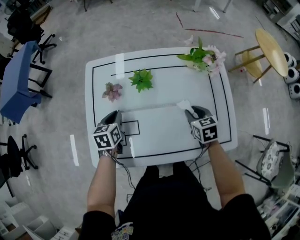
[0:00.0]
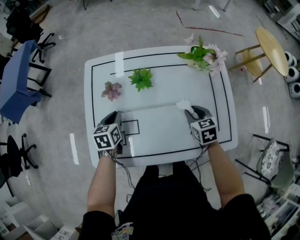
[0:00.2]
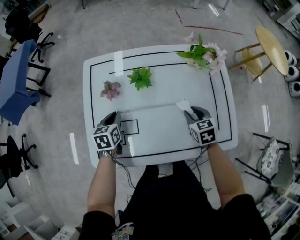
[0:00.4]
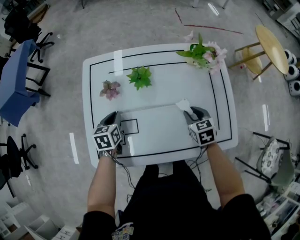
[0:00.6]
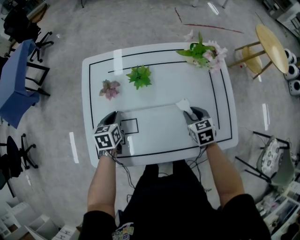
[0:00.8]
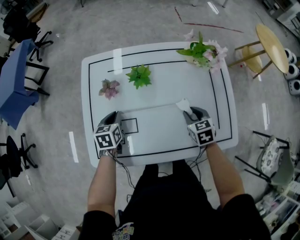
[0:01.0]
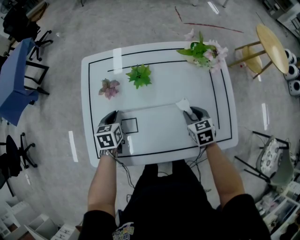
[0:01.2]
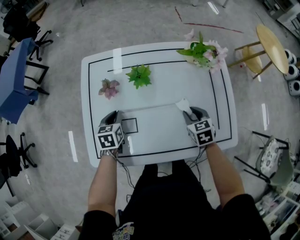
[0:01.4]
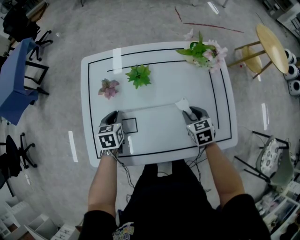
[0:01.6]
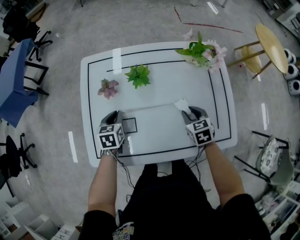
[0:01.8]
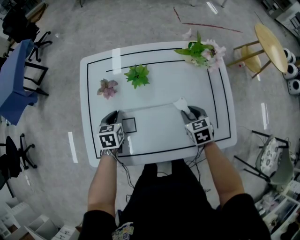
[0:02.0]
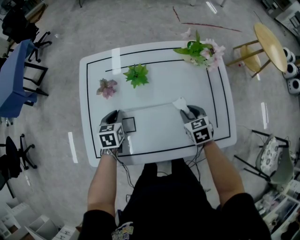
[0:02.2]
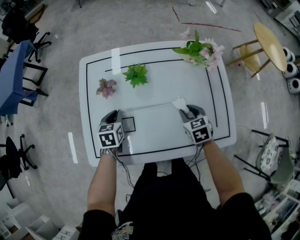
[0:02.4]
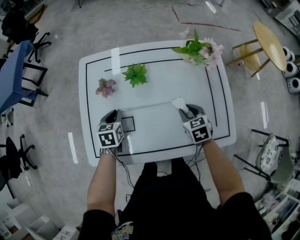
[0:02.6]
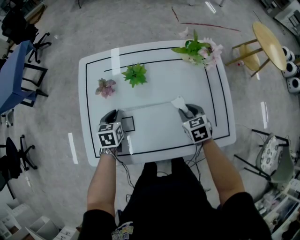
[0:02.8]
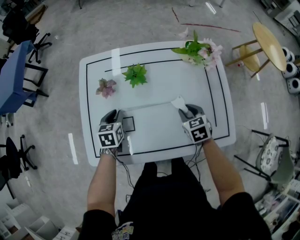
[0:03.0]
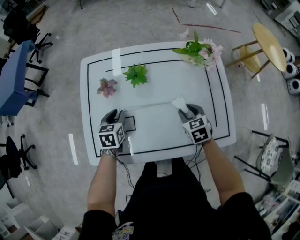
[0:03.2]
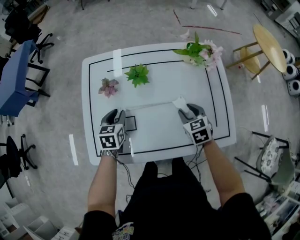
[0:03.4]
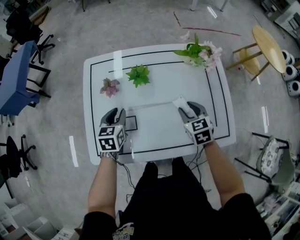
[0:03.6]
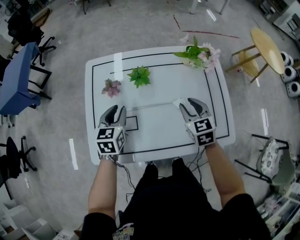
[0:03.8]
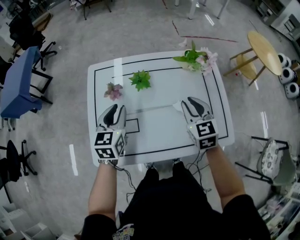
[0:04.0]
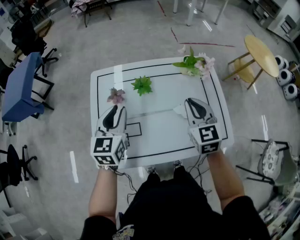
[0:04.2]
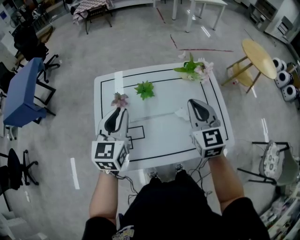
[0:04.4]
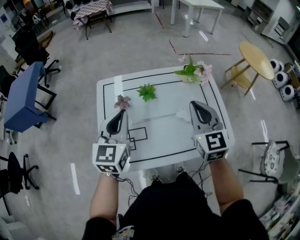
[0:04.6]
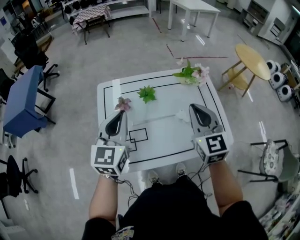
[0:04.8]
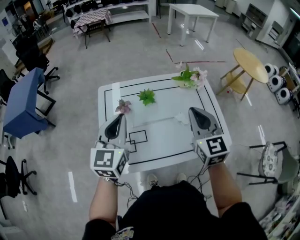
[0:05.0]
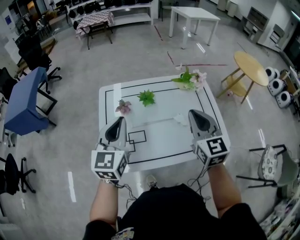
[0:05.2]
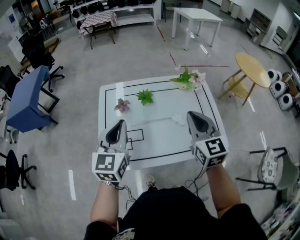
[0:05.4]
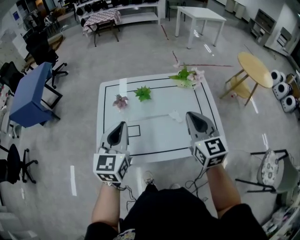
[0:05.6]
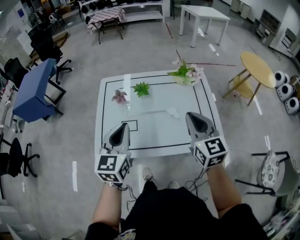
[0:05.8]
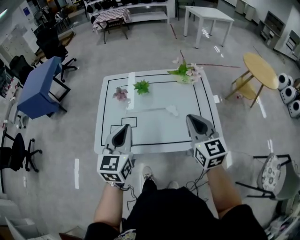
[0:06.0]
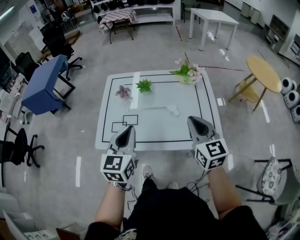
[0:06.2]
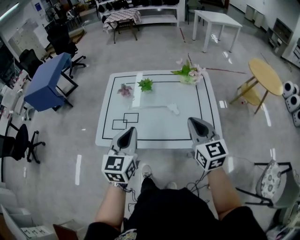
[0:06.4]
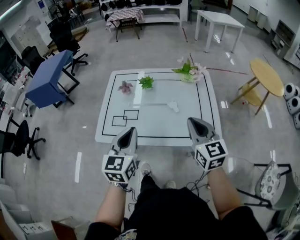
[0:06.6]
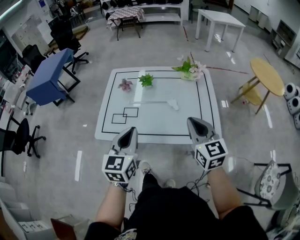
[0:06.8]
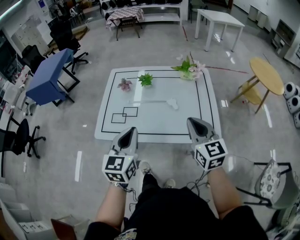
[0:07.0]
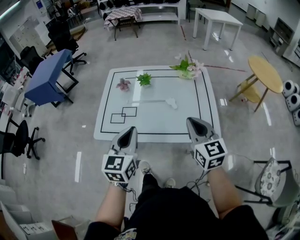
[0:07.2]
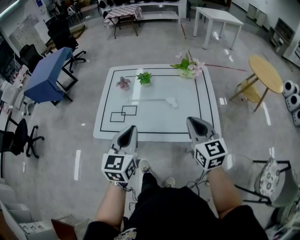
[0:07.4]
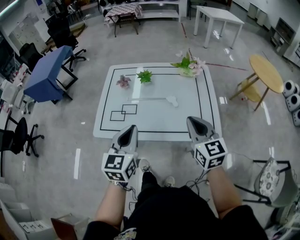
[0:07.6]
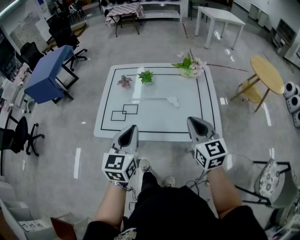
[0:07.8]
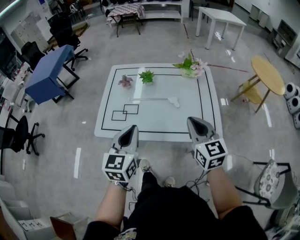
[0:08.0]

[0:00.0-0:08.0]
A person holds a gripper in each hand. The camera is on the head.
0:00.0 to 0:03.2: The grippers make only small movements.
0:03.2 to 0:04.8: The two grippers go about 30 cm upward. The left gripper points its fingers roughly 40 degrees further upward, and closes up; the right gripper points its fingers some 40 degrees further upward, and closes its fingers.
0:04.8 to 0:06.4: The grippers both shift backward and to the right by about 20 cm.
0:06.4 to 0:08.0: The grippers stay close to where they were, moving slightly.

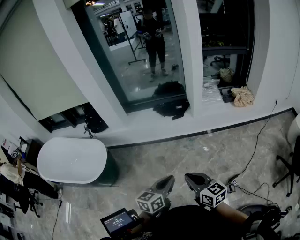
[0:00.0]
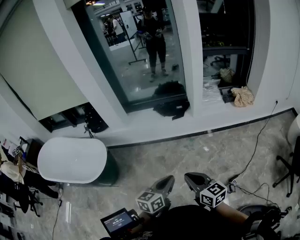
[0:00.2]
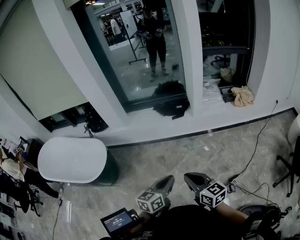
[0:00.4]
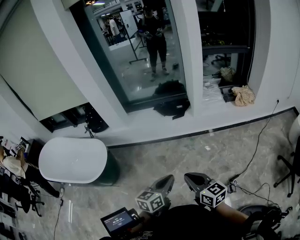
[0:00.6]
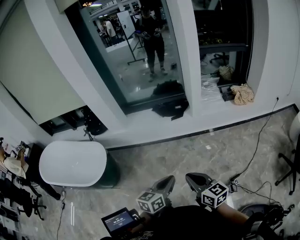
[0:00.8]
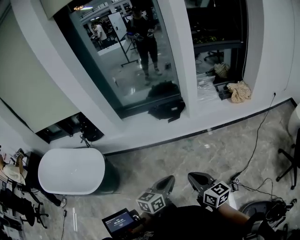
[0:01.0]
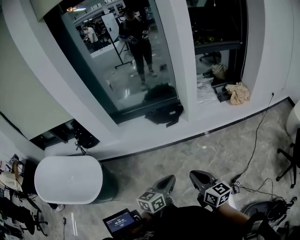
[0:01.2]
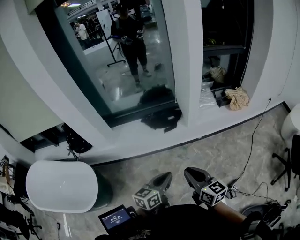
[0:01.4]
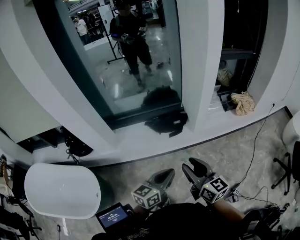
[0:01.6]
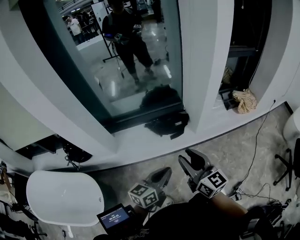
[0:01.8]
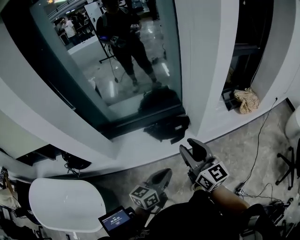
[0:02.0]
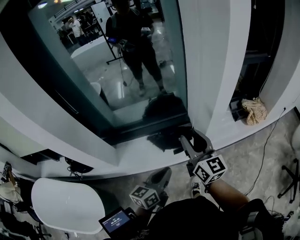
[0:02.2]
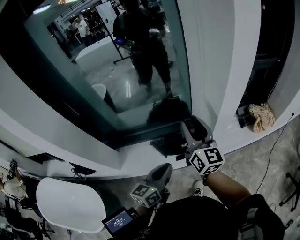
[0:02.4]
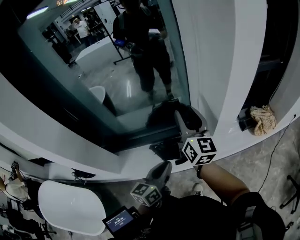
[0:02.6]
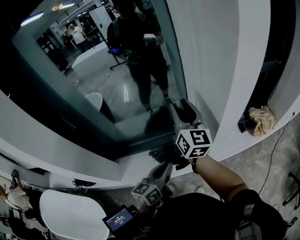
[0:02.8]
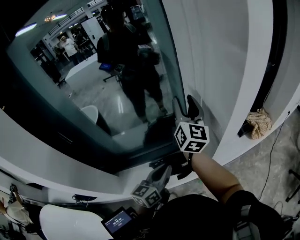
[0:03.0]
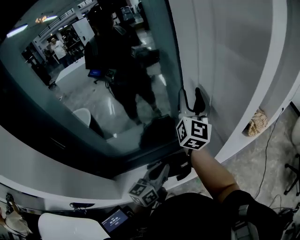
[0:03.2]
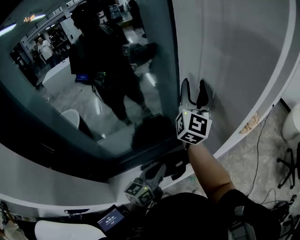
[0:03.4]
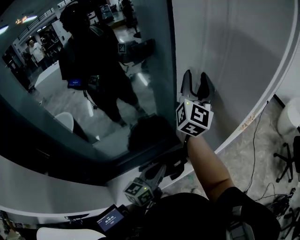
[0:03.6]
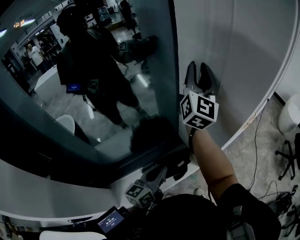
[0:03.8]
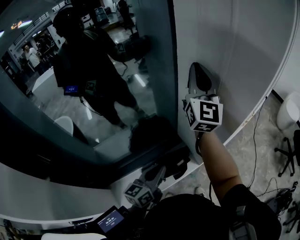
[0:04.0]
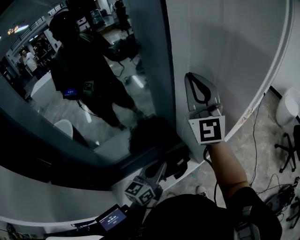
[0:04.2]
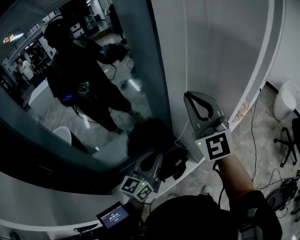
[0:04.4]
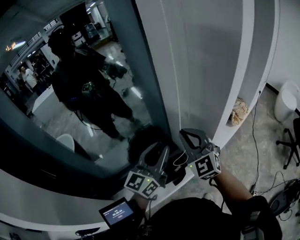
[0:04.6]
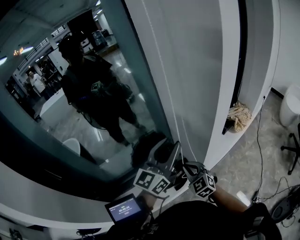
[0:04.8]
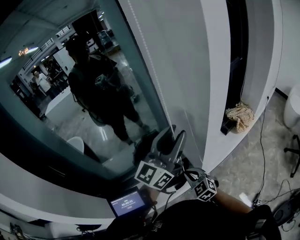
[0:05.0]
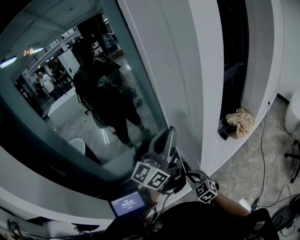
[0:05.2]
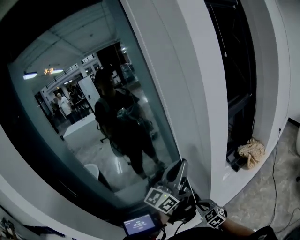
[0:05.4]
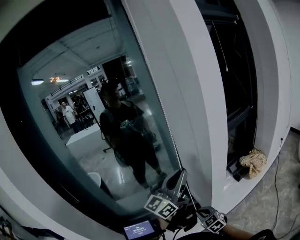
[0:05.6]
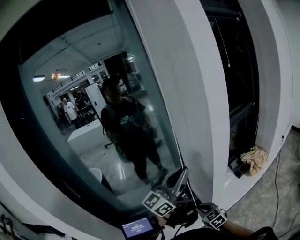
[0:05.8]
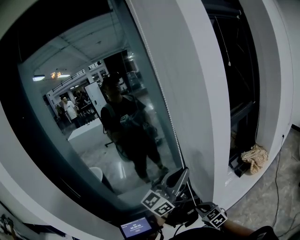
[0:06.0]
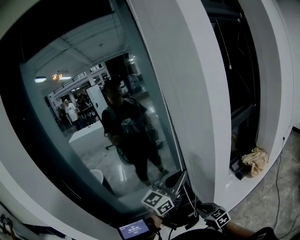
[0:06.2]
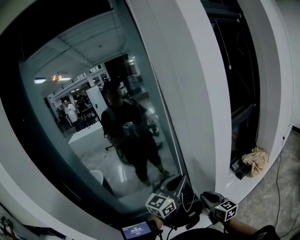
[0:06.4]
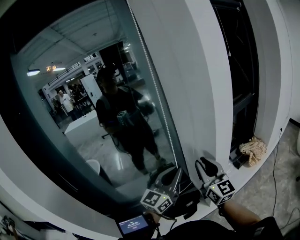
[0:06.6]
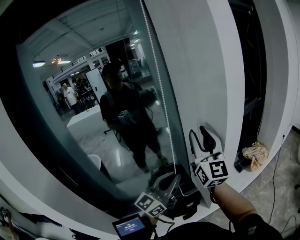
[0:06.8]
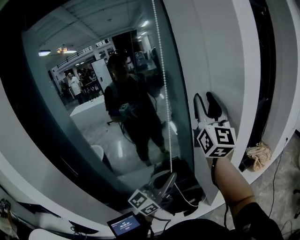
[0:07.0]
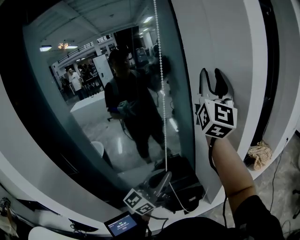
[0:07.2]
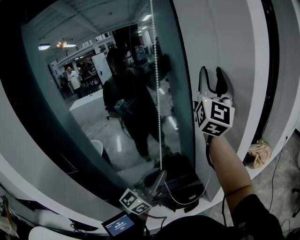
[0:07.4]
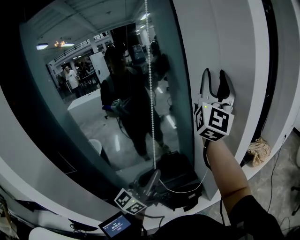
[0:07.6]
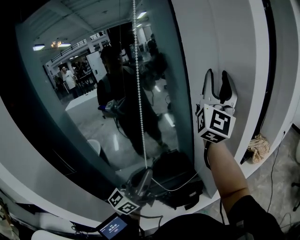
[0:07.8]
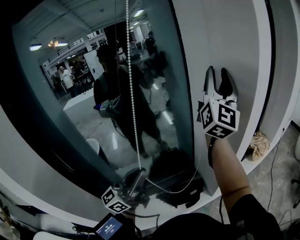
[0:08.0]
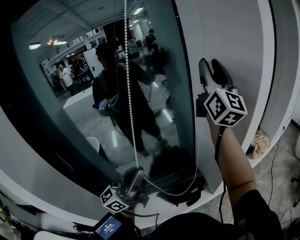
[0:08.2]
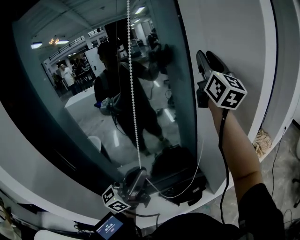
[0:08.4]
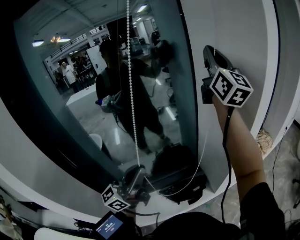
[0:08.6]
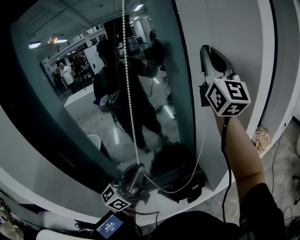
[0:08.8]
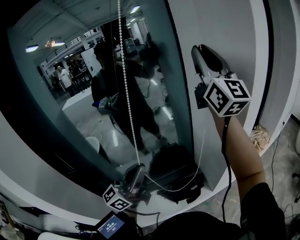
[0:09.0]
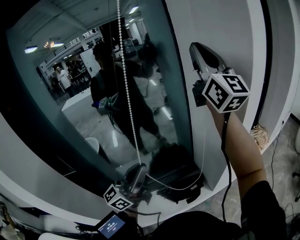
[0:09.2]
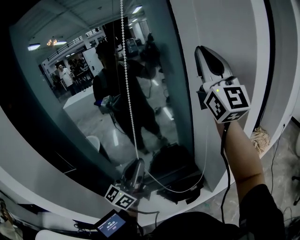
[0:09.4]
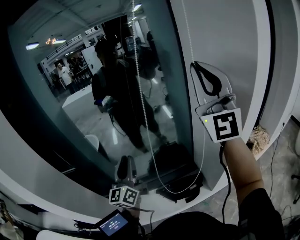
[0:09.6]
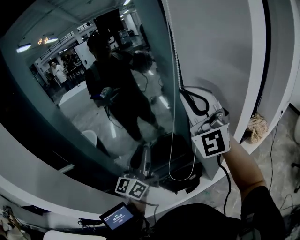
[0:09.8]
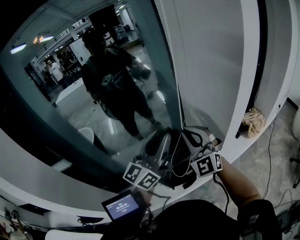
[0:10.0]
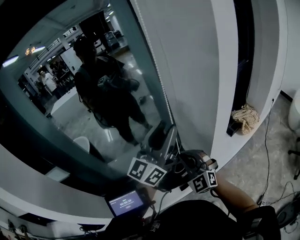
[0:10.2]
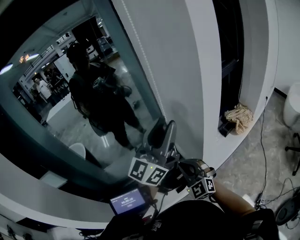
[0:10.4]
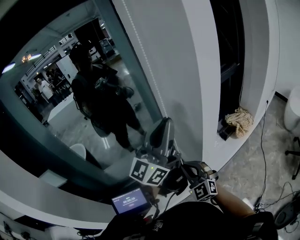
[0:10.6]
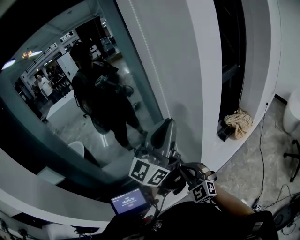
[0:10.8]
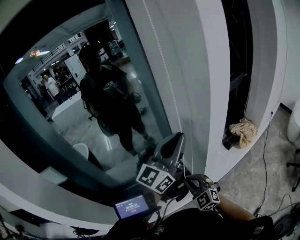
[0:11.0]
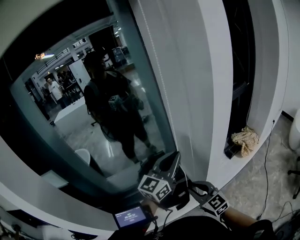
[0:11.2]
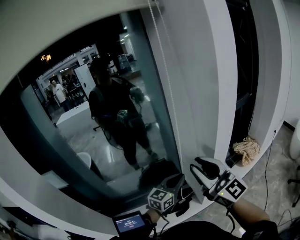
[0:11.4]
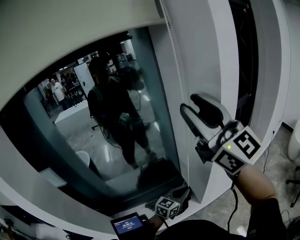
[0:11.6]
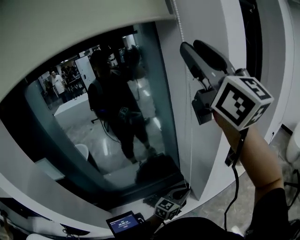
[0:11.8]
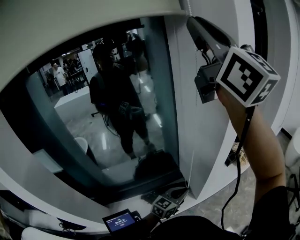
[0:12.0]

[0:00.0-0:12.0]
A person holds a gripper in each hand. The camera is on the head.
0:00.0 to 0:01.6: Both grippers move forward, some 30 cm. The right gripper rotates about 20 degrees, and opens.
0:01.6 to 0:03.0: The two grippers go about 50 cm forward. The right gripper swivels roughly 40 degrees.
0:03.0 to 0:04.4: The left gripper travels upward, to the left and forward by approximately 10 cm, and turns by some 20 degrees, while the right gripper moves upward and backward, approximately 10 cm, twists roughly 50 degrees counterclockwise, seen from behind, and closes.
0:04.4 to 0:06.0: The right gripper heads downward, covering some 35 cm, and angles its fingers downward, by about 40 degrees; the left gripper travels upward and to the right by some 25 cm, rotates roughly 30 degrees, and opens and closes again.
0:06.0 to 0:07.6: The left gripper changes place by some 20 cm, while the right gripper goes approximately 50 cm upward, tilts its fingers approximately 70 degrees upward, and opens up.
0:07.6 to 0:09.0: The right gripper shifts by roughly 5 cm, swivels about 30 degrees, and closes up. Meanwhile the left gripper ends up some 5 cm from where it was.
0:09.0 to 0:10.4: The right gripper travels downward by roughly 50 cm, and tips its fingers downward by some 50 degrees. Meanwhile the left gripper moves roughly 25 cm, and opens.
0:10.4 to 0:12.0: The left gripper goes roughly 35 cm downward, points its fingers approximately 40 degrees further downward, and closes up. The right gripper shifts about 60 cm upward, angles its fingers upward, by roughly 50 degrees, and opens, then closes once more.

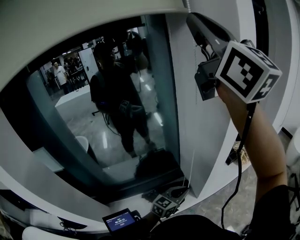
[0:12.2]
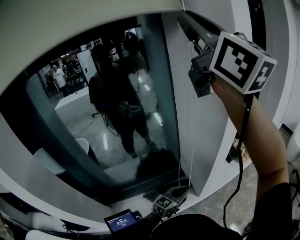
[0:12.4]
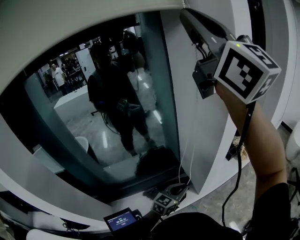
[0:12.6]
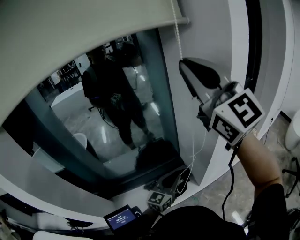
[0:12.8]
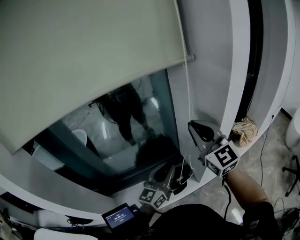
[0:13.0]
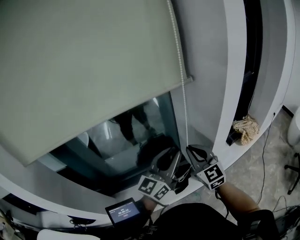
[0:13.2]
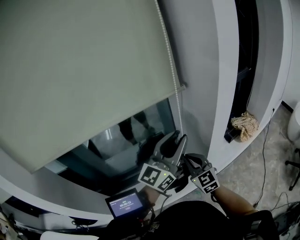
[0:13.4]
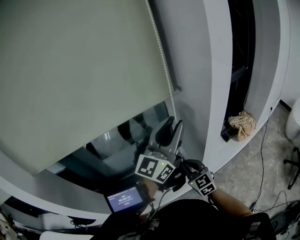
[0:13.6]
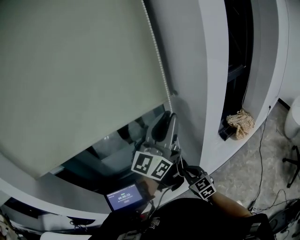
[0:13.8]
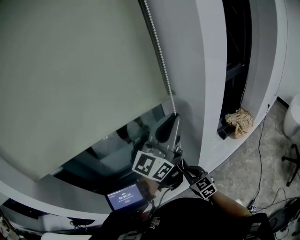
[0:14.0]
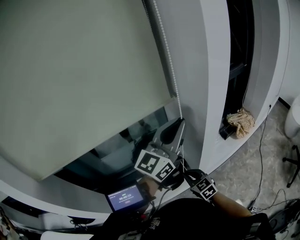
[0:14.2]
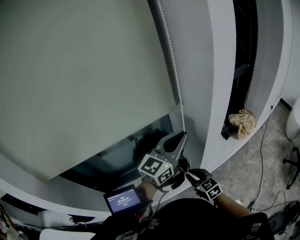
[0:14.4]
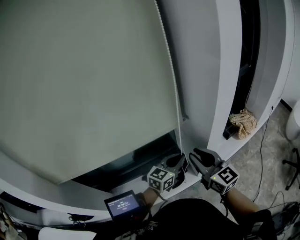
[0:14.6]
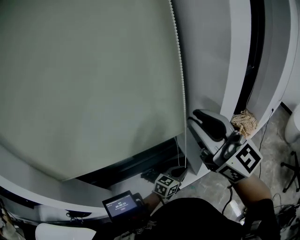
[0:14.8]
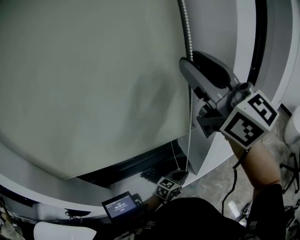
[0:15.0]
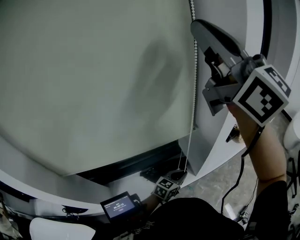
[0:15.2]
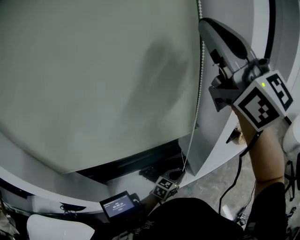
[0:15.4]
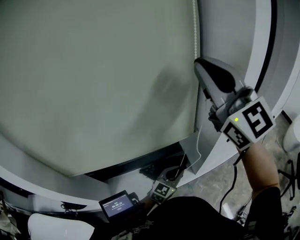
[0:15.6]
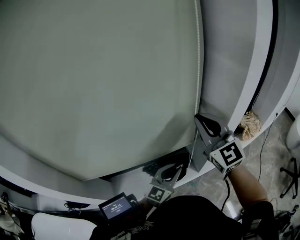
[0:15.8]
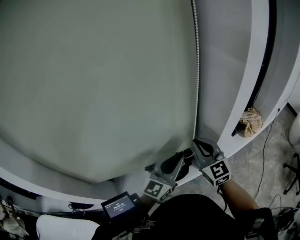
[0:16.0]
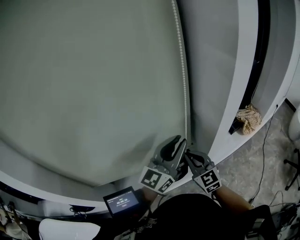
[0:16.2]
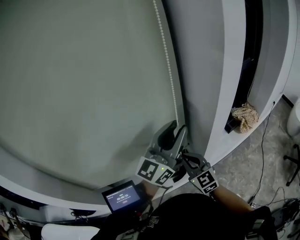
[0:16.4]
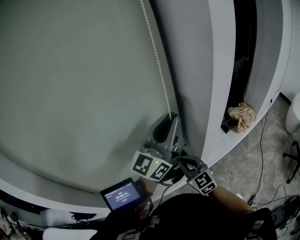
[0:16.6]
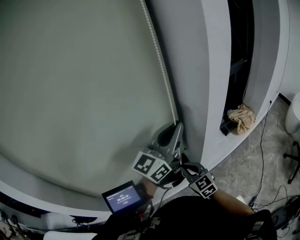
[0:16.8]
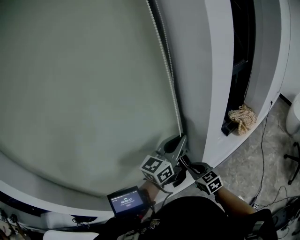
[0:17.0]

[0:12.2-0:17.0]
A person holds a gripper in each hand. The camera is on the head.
0:12.2 to 0:13.8: The left gripper shifts approximately 35 cm upward, and points its fingers about 40 degrees further upward. Meanwhile the right gripper is displaced downward by some 70 cm, and tips its fingers downward by roughly 60 degrees.
0:13.8 to 0:15.4: The right gripper shifts about 60 cm upward, points its fingers approximately 50 degrees further upward, and opens, then closes again. The left gripper heads downward, covering approximately 40 cm, and tilts its fingers approximately 60 degrees downward.
0:15.4 to 0:17.0: The left gripper is displaced upward by about 25 cm, tilts its fingers about 30 degrees upward, and opens, then closes again, while the right gripper moves downward, approximately 60 cm, and tilts its fingers roughly 60 degrees downward.
